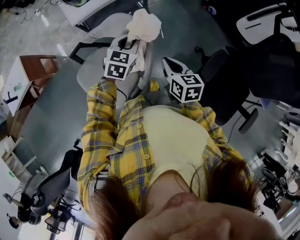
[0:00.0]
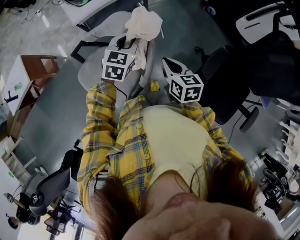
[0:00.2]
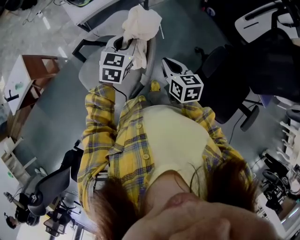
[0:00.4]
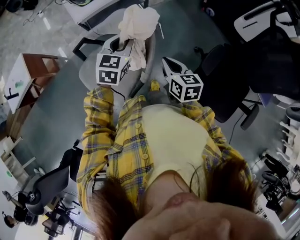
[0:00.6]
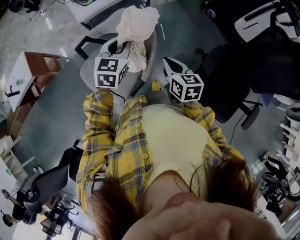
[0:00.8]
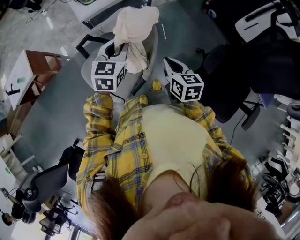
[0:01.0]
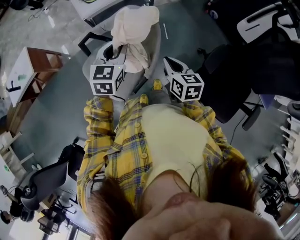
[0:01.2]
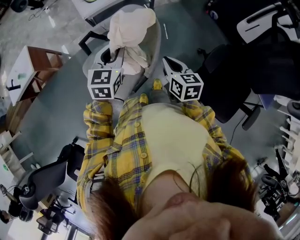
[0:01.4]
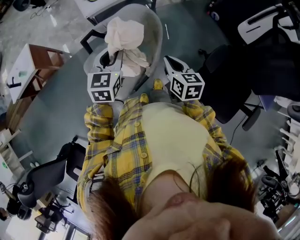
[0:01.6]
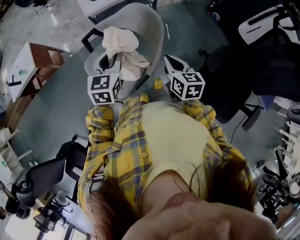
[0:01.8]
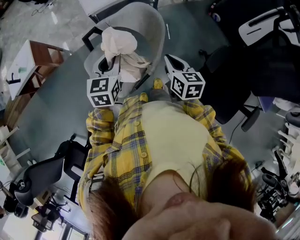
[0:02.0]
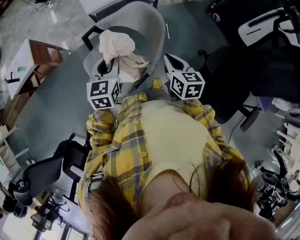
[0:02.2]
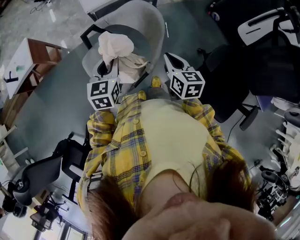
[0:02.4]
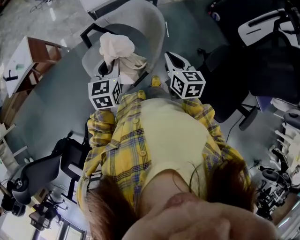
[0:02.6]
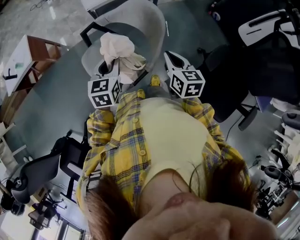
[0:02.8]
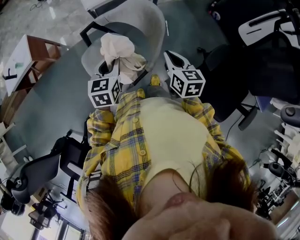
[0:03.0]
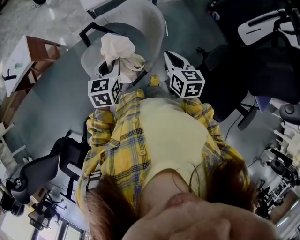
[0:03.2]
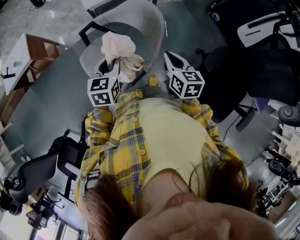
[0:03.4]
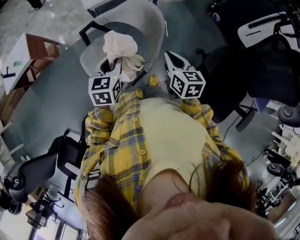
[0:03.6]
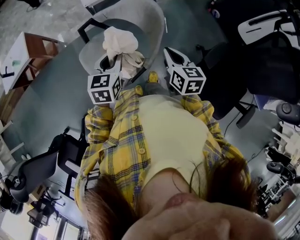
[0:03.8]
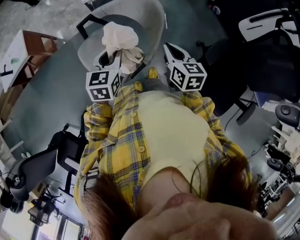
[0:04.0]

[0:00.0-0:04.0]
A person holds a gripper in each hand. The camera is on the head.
0:00.0 to 0:01.4: The right gripper shifts some 5 cm backward. Meanwhile the left gripper shifts roughly 20 cm backward, to the left and upward.
0:01.4 to 0:02.6: The left gripper shifts some 10 cm backward and to the left.
0:02.6 to 0:04.0: The grippers move only a little.

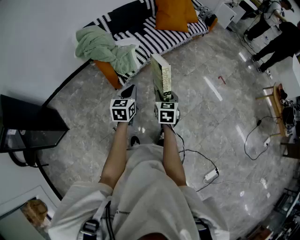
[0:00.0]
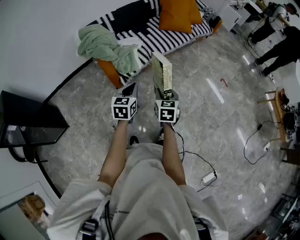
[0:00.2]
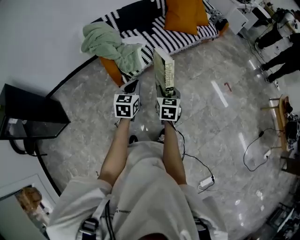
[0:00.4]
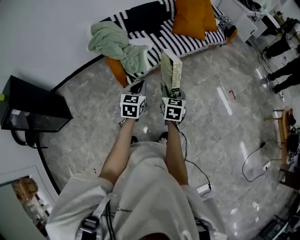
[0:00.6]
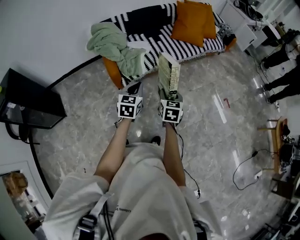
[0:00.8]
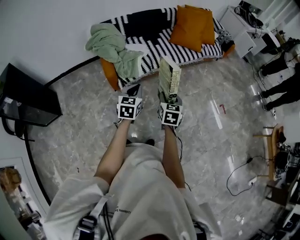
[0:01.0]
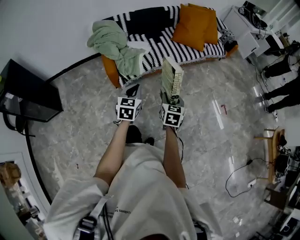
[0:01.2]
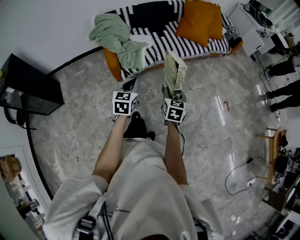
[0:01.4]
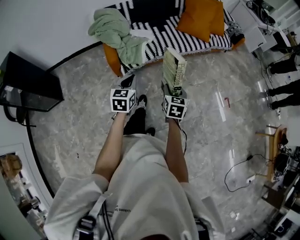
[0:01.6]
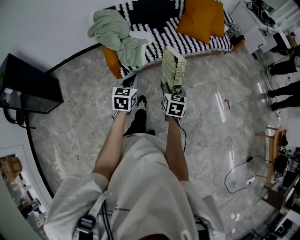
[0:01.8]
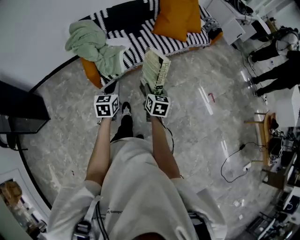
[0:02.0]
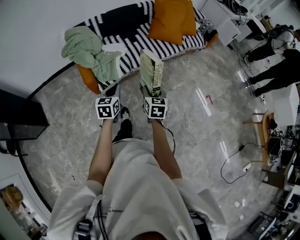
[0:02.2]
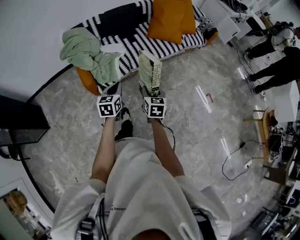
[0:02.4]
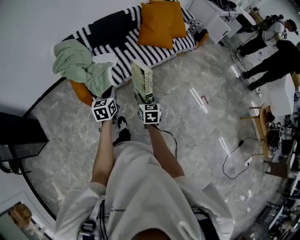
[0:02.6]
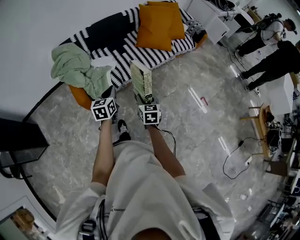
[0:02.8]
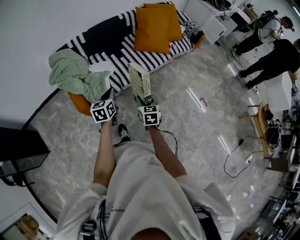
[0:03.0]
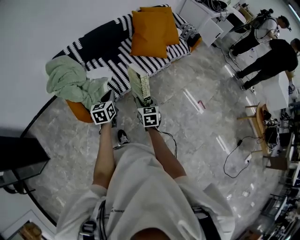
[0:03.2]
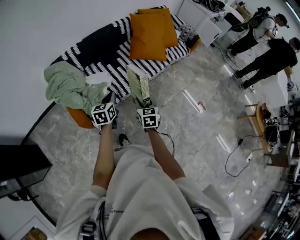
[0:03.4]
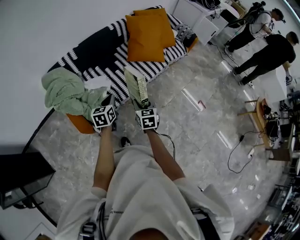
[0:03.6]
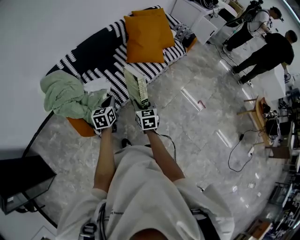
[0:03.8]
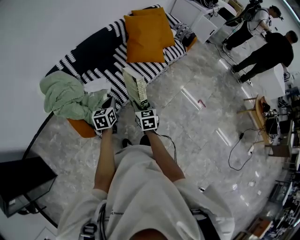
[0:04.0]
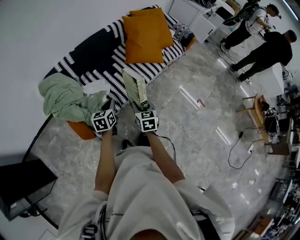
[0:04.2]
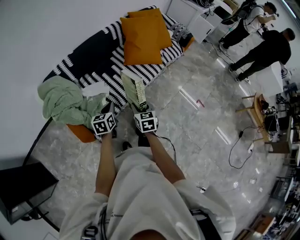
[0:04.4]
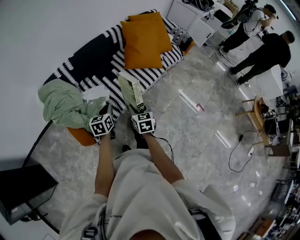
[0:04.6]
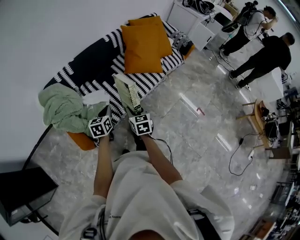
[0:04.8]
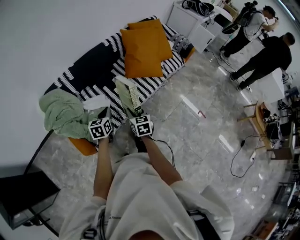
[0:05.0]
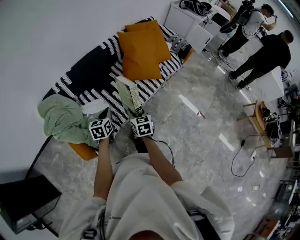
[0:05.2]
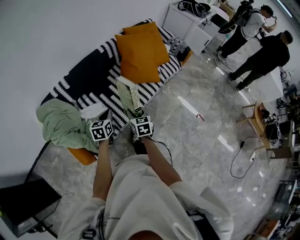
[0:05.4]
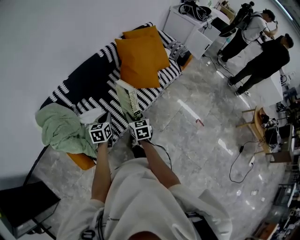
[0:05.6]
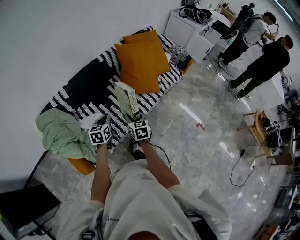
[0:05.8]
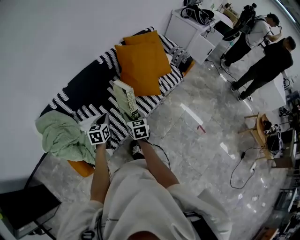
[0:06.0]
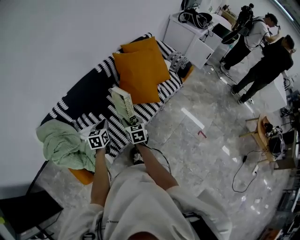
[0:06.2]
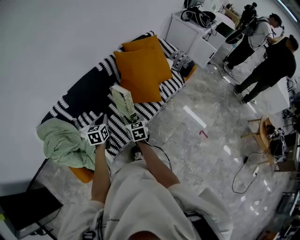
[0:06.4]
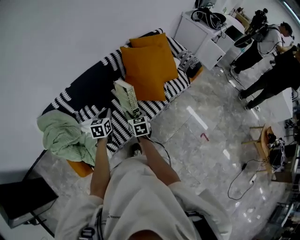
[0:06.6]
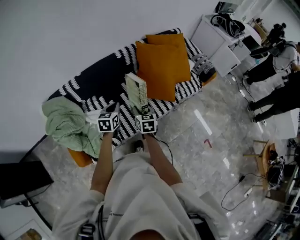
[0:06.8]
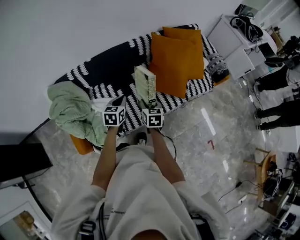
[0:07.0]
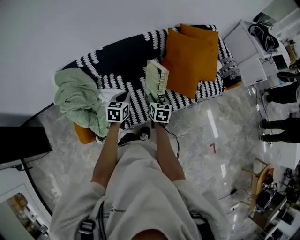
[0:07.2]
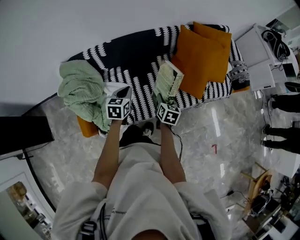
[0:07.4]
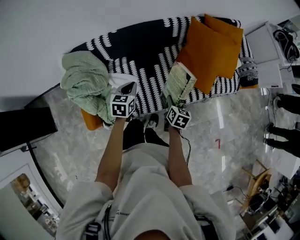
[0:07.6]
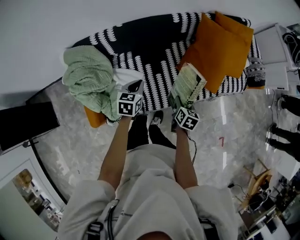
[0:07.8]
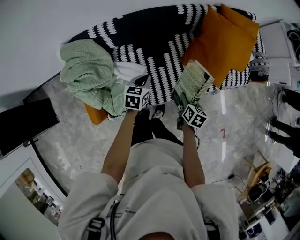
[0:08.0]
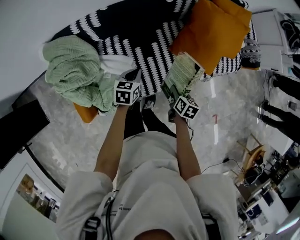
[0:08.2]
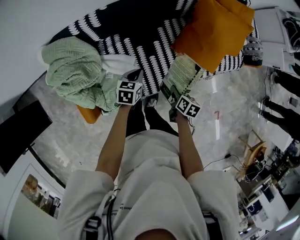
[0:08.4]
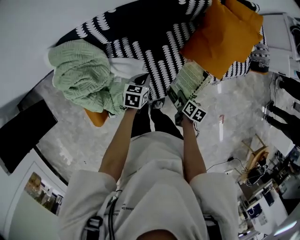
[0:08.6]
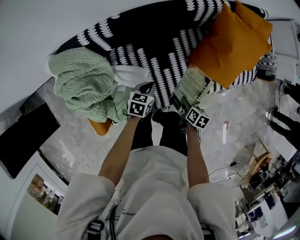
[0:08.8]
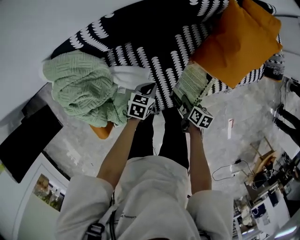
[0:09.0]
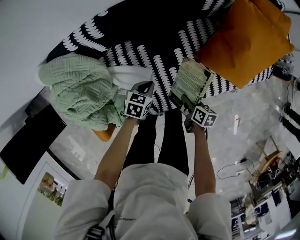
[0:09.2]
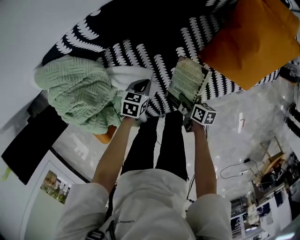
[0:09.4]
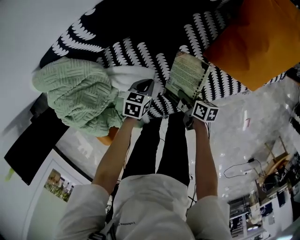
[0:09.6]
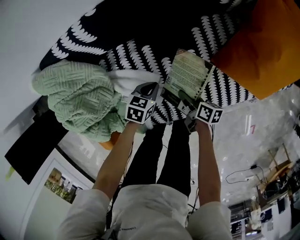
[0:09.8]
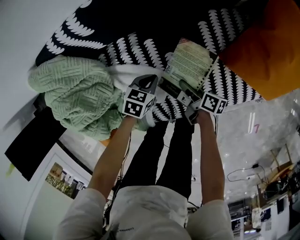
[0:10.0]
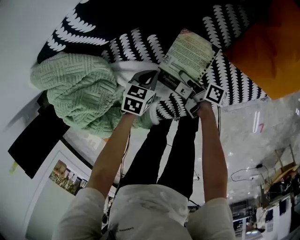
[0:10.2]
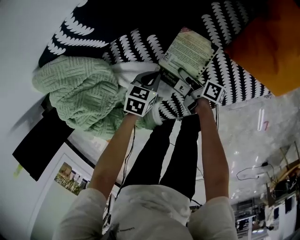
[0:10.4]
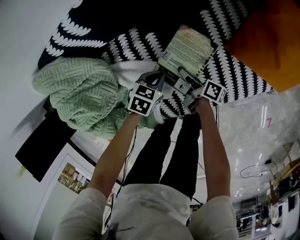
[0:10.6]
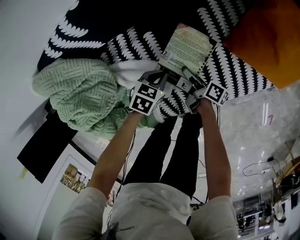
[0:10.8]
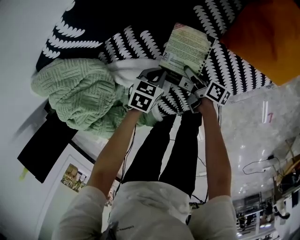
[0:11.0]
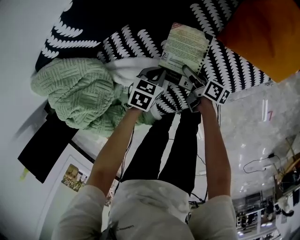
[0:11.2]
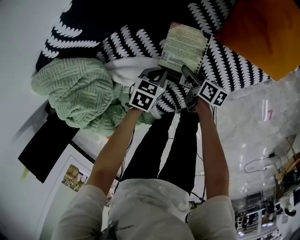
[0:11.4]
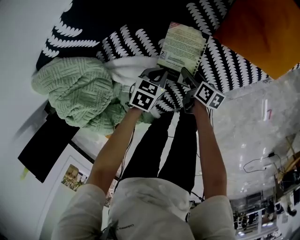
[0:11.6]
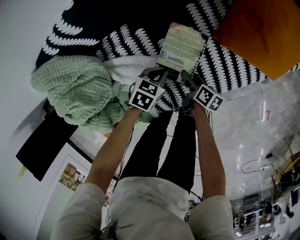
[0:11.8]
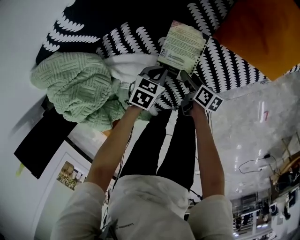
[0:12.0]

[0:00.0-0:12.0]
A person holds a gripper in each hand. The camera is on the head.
0:00.0 to 0:01.6: The left gripper goes approximately 10 cm to the right and forward; the right gripper moves to the right and forward, about 15 cm.
0:01.6 to 0:03.0: Both grippers move forward, some 20 cm.
0:03.0 to 0:04.4: The right gripper goes about 15 cm forward and to the left, while the left gripper goes about 15 cm forward.
0:04.4 to 0:06.0: The two grippers go some 25 cm forward.
0:06.0 to 0:07.6: The right gripper travels downward and forward by some 15 cm. The left gripper heads forward and to the left, covering roughly 10 cm.
0:07.6 to 0:09.0: The two grippers go approximately 20 cm downward. The right gripper swivels some 20 degrees; the left gripper turns by roughly 30 degrees.
0:09.0 to 0:10.4: The left gripper shifts some 15 cm downward; the right gripper travels downward, to the left and forward by roughly 25 cm, and swivels about 40 degrees.
0:10.4 to 0:12.0: Both grippers move to the right, approximately 10 cm. The right gripper turns by about 20 degrees, and opens up.

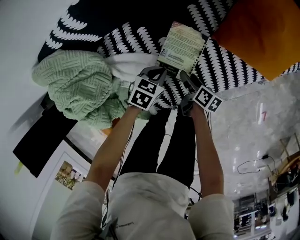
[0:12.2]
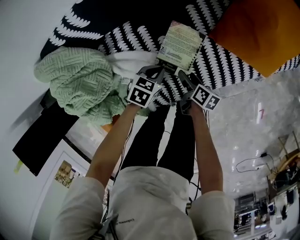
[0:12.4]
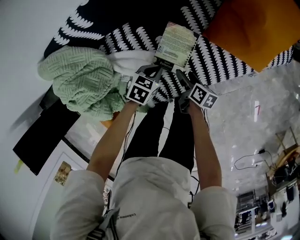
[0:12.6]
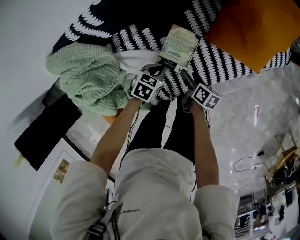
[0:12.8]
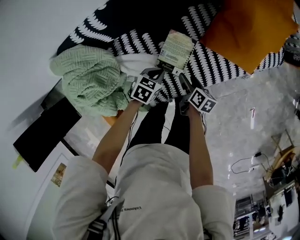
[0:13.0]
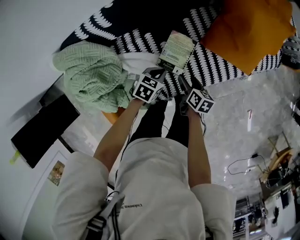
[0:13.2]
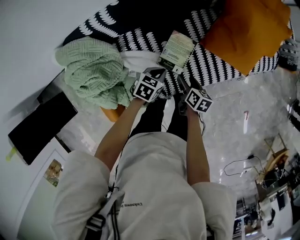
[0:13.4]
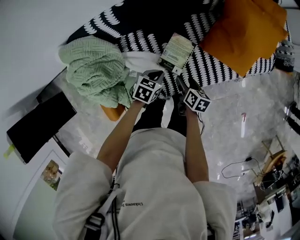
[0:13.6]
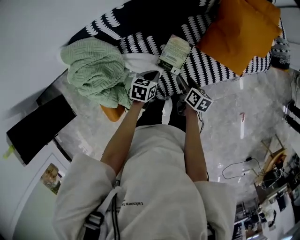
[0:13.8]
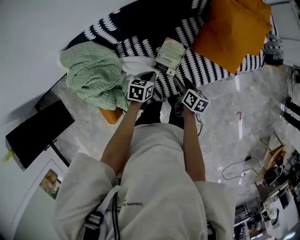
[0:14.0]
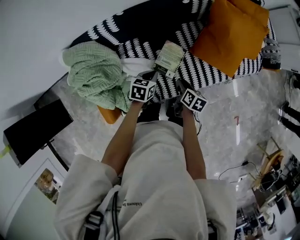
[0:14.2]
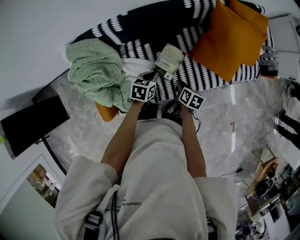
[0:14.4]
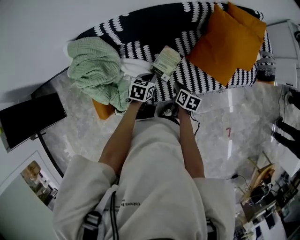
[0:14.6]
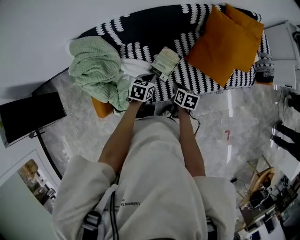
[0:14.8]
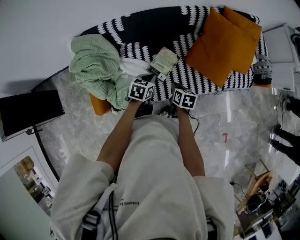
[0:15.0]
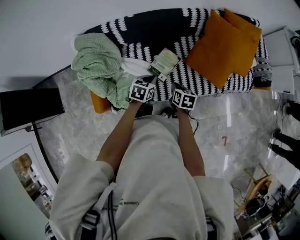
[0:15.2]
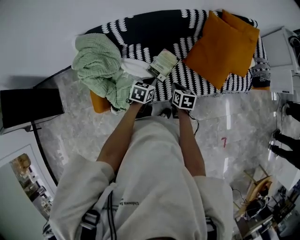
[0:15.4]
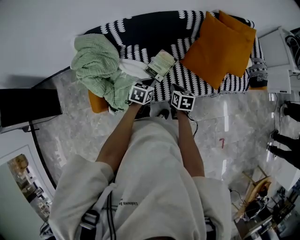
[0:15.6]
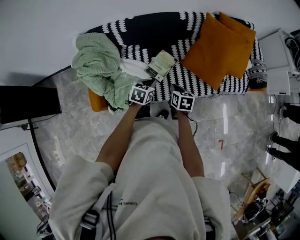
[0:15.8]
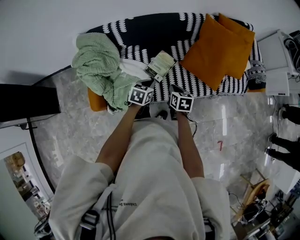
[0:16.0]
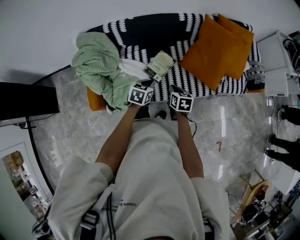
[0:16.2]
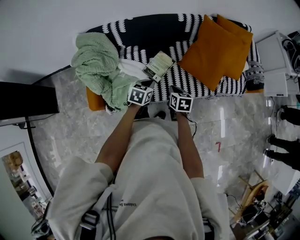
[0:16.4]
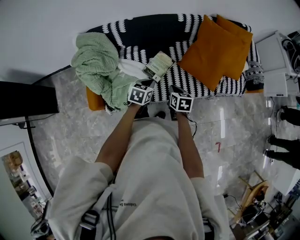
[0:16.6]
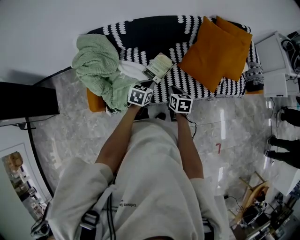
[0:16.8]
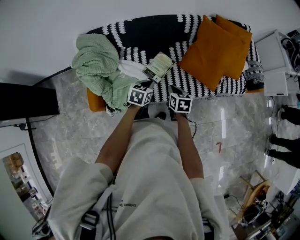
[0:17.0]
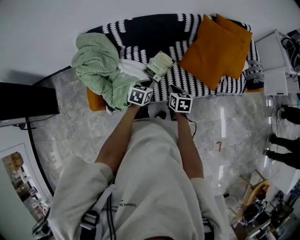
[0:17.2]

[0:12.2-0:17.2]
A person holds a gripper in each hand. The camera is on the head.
0:12.2 to 0:13.8: The two grippers go approximately 20 cm upward.
0:13.8 to 0:15.6: The grippers both shift upward, backward and to the right by roughly 15 cm. The right gripper swivels approximately 30 degrees, and closes up.
0:15.6 to 0:17.2: The grippers move only a little.

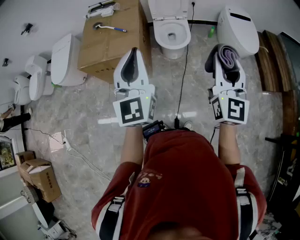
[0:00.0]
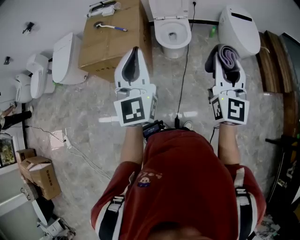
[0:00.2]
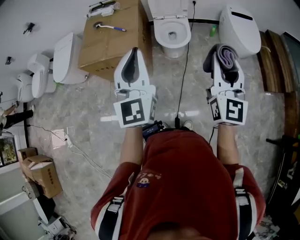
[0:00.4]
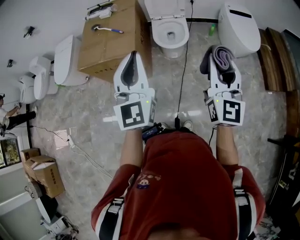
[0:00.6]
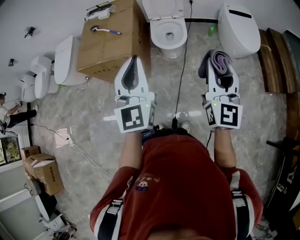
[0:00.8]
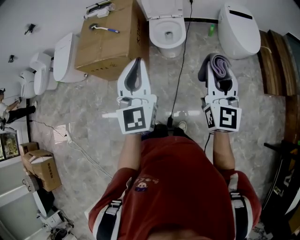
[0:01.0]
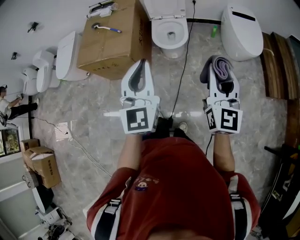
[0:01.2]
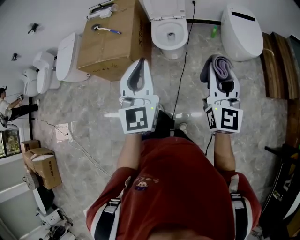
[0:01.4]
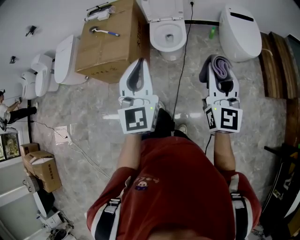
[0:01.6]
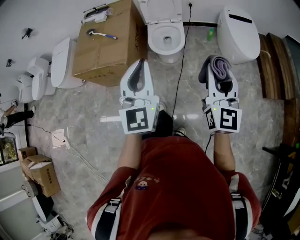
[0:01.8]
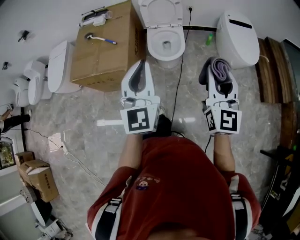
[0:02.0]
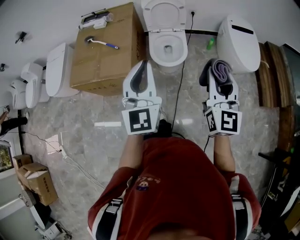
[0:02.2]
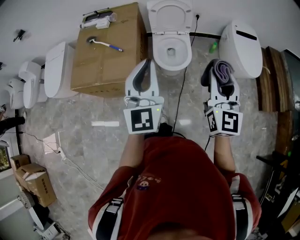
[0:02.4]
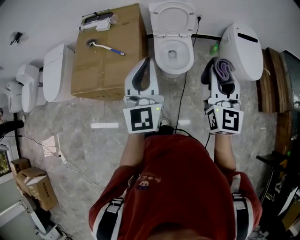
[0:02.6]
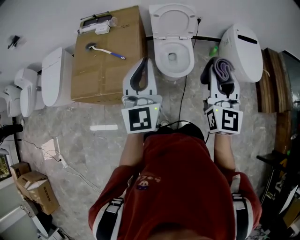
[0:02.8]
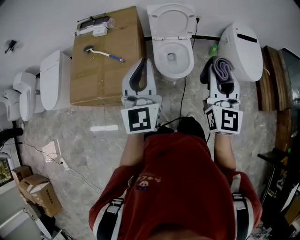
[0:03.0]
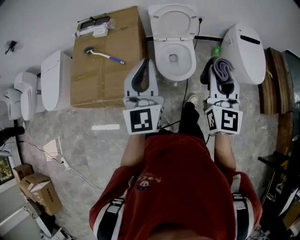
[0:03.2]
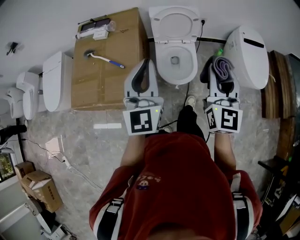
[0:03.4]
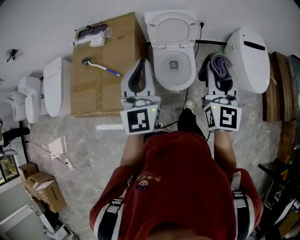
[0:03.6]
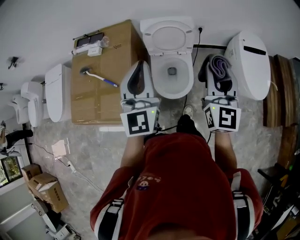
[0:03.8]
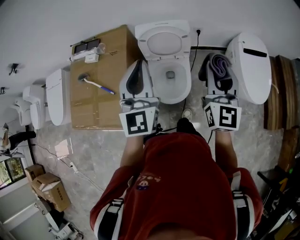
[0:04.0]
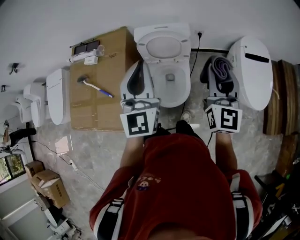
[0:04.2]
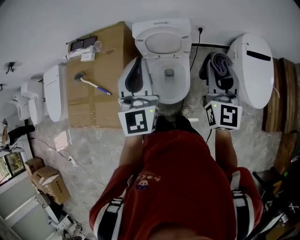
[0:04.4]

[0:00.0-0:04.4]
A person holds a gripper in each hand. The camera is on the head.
0:00.0 to 0:01.4: Both grippers travel together to the right, about 15 cm.
0:01.4 to 0:03.0: Both grippers move forward and to the left, some 35 cm.
0:03.0 to 0:04.4: The two grippers go about 35 cm forward and to the right.
